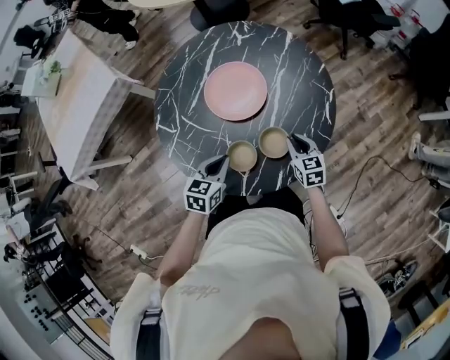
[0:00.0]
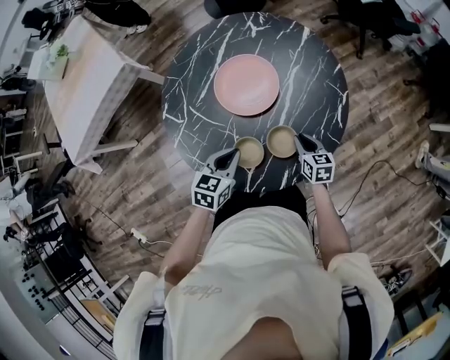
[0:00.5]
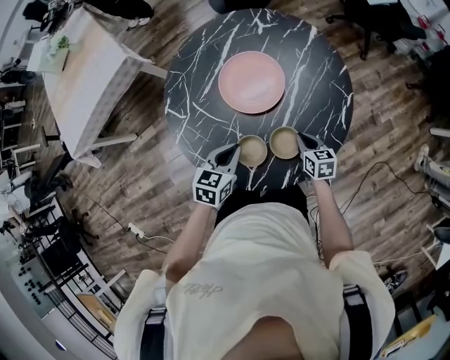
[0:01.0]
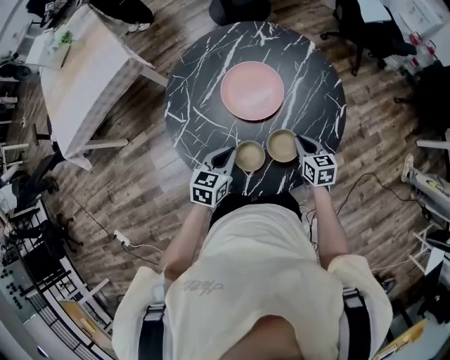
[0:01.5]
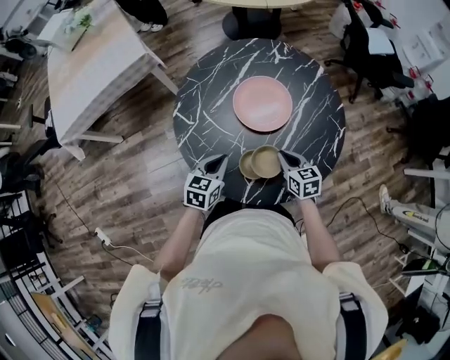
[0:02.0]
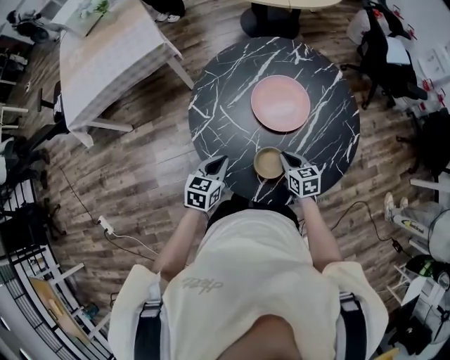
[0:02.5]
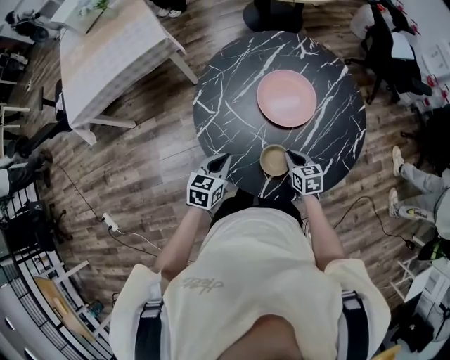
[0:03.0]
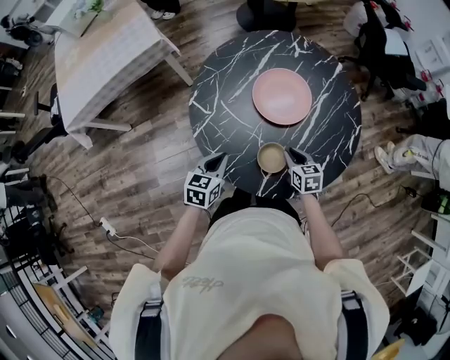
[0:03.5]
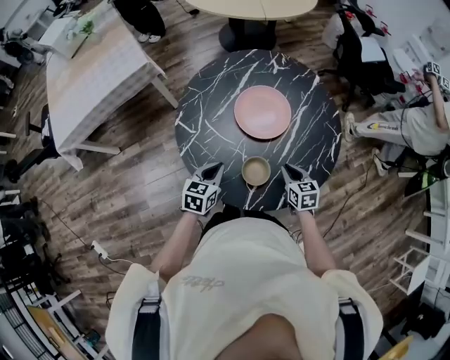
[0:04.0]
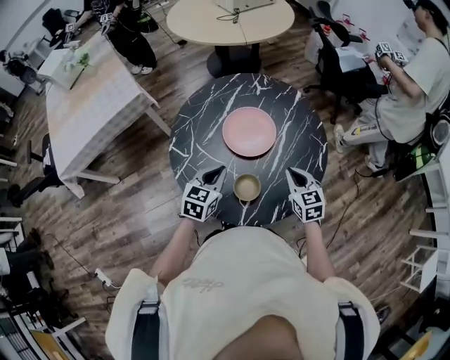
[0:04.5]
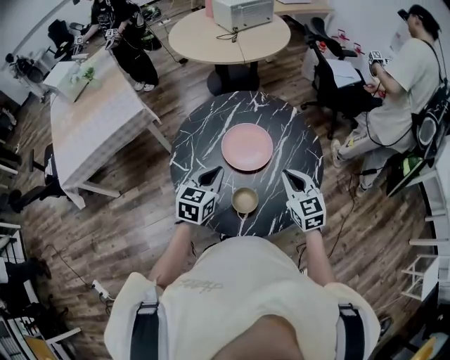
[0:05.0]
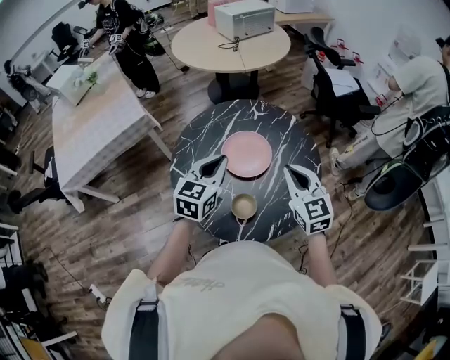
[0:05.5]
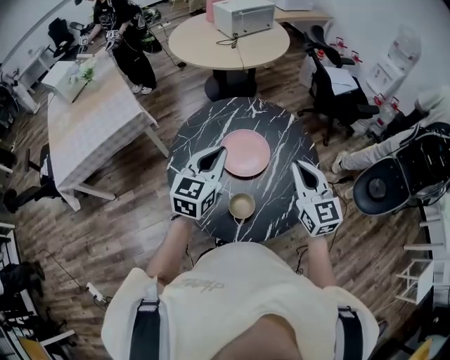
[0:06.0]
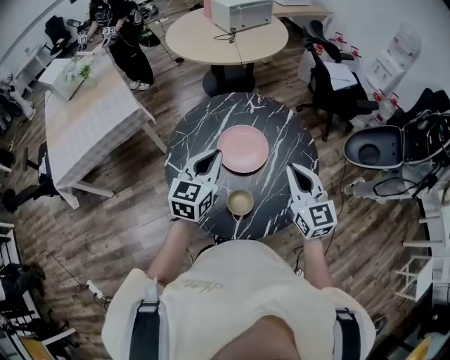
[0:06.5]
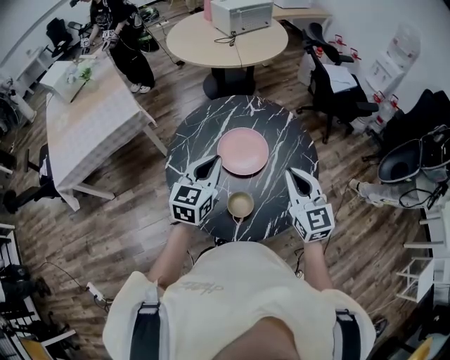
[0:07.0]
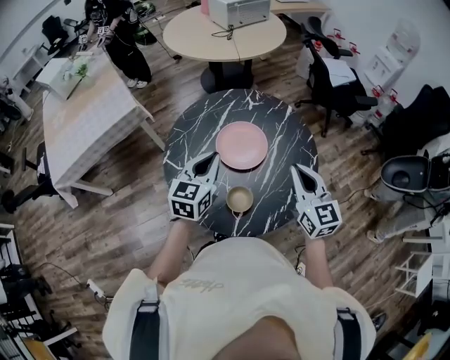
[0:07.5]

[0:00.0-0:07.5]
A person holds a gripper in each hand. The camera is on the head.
0:00.0 to 0:02.0: The two grippers go about 10 cm to the left.
0:04.0 to 0:05.5: Both grippers move upward, roughly 25 cm. The right gripper changes its angle by some 30 degrees. Meanwhile the left gripper swivels some 20 degrees.
0:05.5 to 0:07.5: The grippers move only a little.

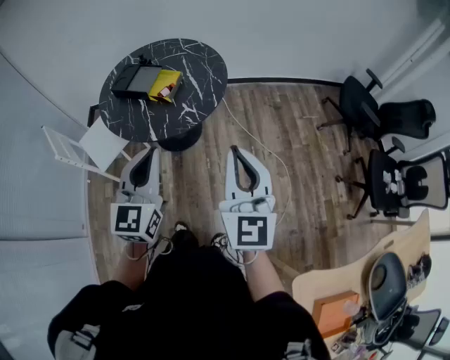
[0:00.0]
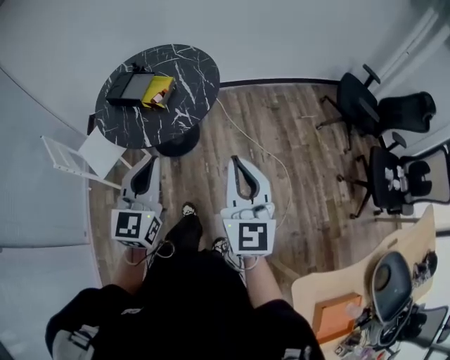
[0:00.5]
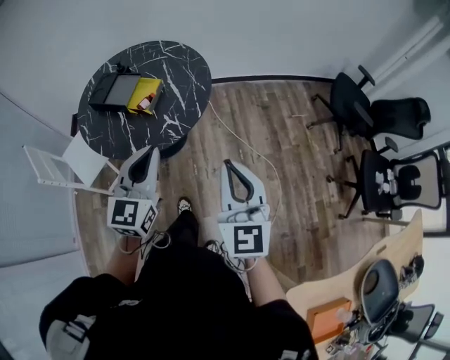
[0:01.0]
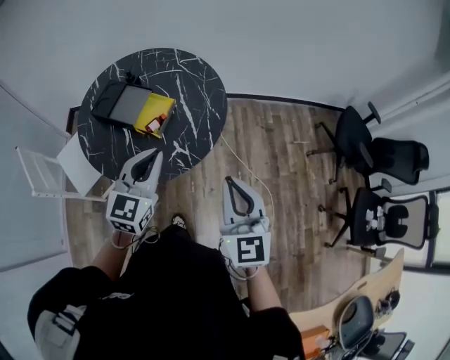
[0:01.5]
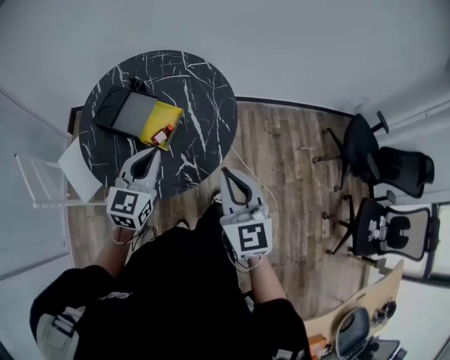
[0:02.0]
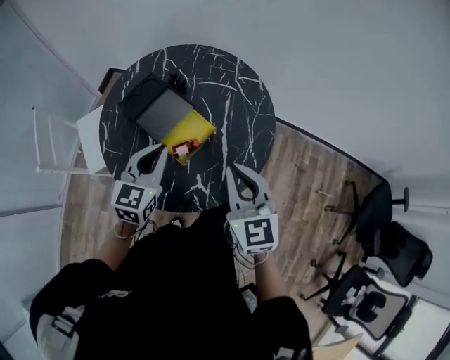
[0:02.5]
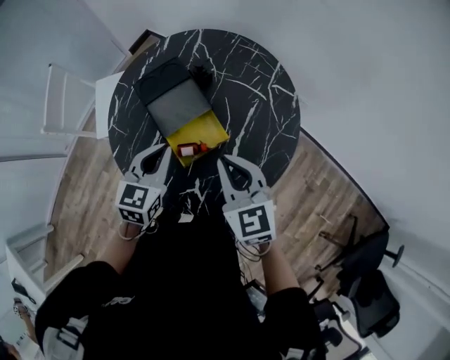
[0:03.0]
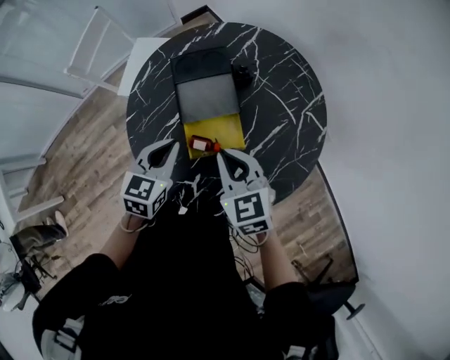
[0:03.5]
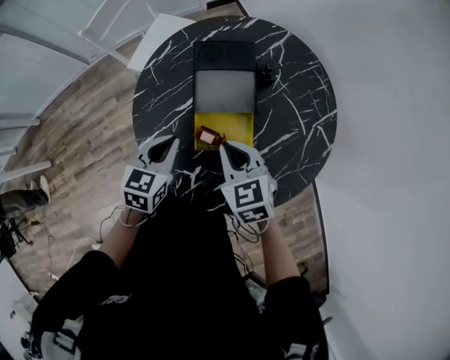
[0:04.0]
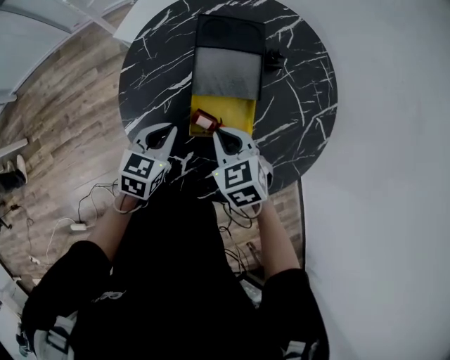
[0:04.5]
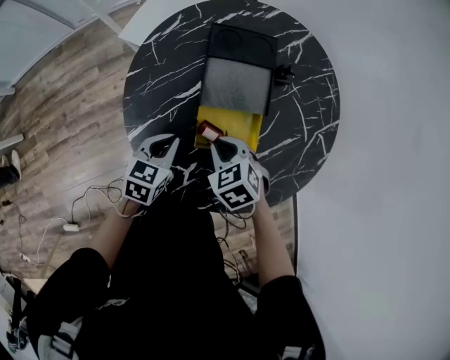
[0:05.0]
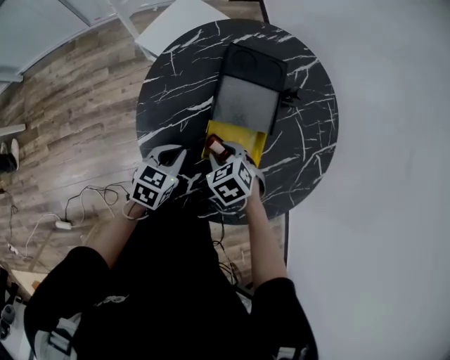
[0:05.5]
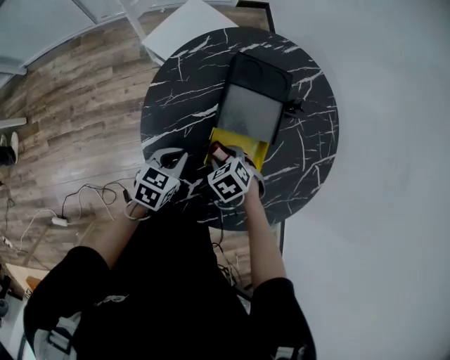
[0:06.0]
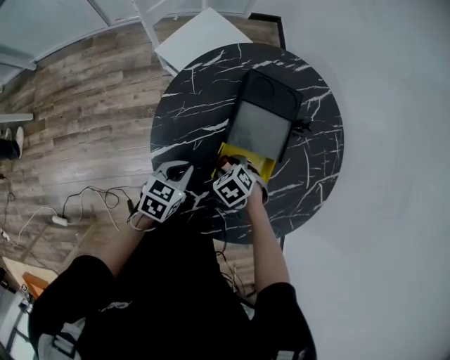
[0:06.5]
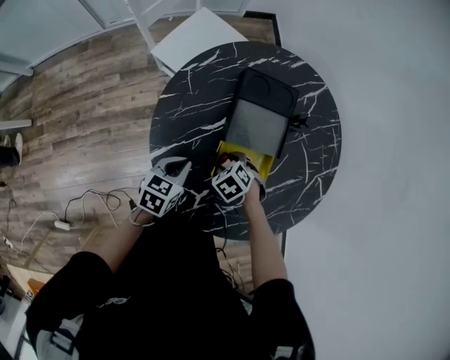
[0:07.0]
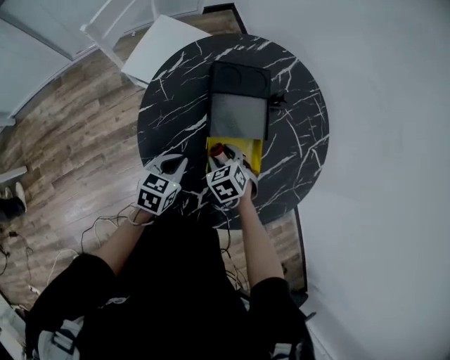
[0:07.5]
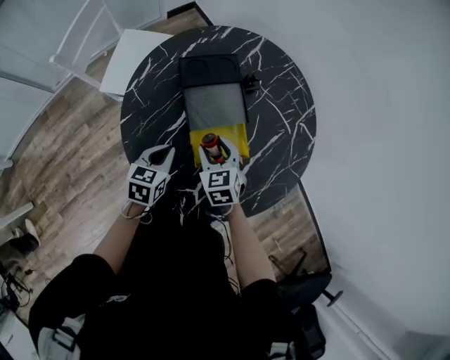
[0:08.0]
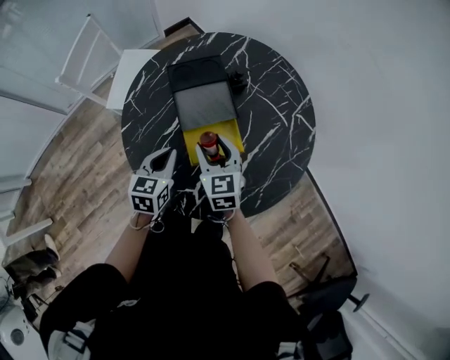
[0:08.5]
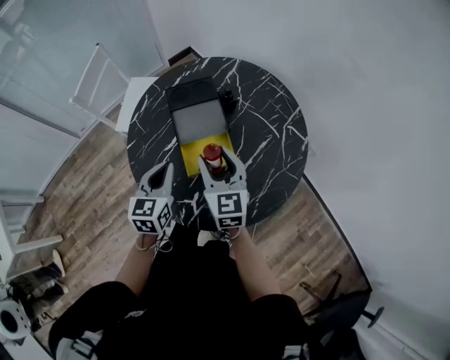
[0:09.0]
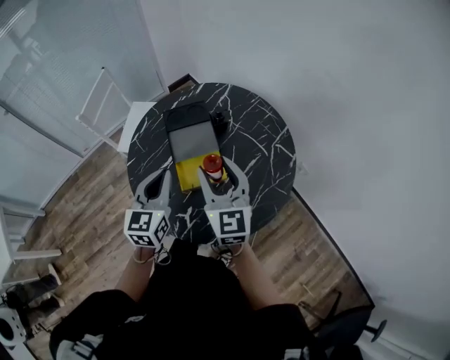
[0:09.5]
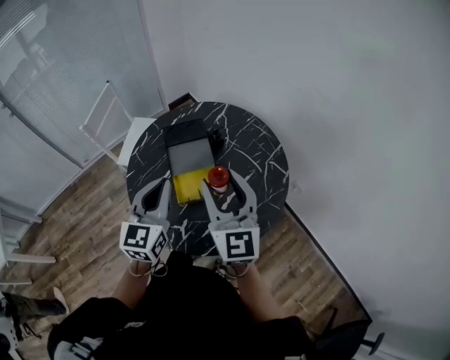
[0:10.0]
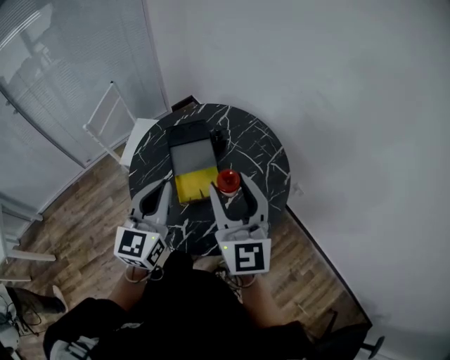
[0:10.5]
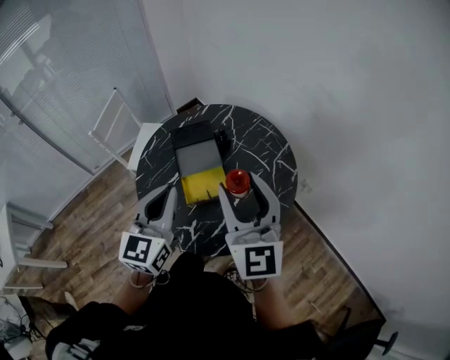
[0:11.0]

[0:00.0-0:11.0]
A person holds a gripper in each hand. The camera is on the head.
0:00.0 to 0:02.0: Both grippers travel together forward, some 35 cm. The right gripper rotates some 20 degrees.
0:02.0 to 0:03.5: The left gripper changes place by some 20 cm, and swivels some 60 degrees, while the right gripper shifts by roughly 35 cm, and swivels about 70 degrees.
0:03.5 to 0:05.5: Both grippers move downward and to the left, roughly 20 cm. The right gripper tips its fingers downward by about 40 degrees, and opens up; the left gripper swivels roughly 20 degrees.
0:07.5 to 0:09.0: The left gripper is displaced upward and to the right by some 15 cm, and rotates about 30 degrees; the right gripper goes about 20 cm upward, and tips its fingers upward by about 50 degrees.
0:09.0 to 0:11.0: The right gripper moves upward, backward and to the right, some 25 cm, and turns by roughly 30 degrees, while the left gripper shifts some 20 cm upward, and turns by approximately 20 degrees.

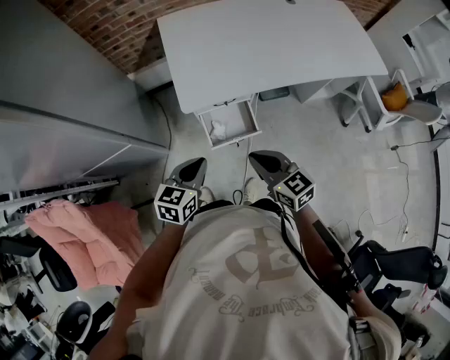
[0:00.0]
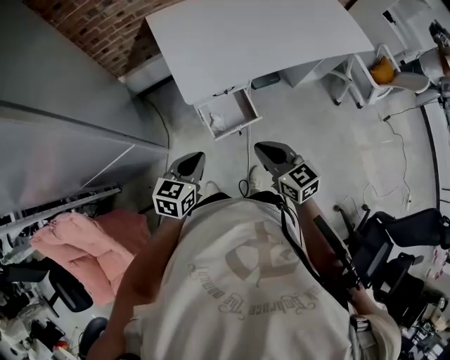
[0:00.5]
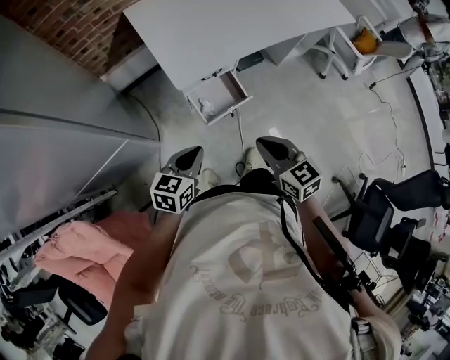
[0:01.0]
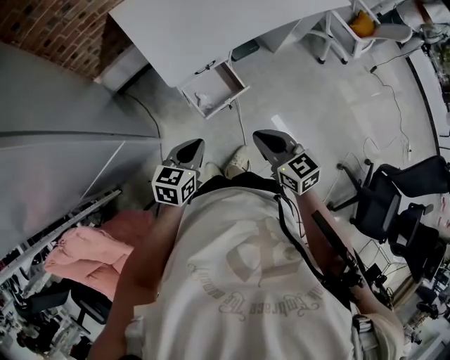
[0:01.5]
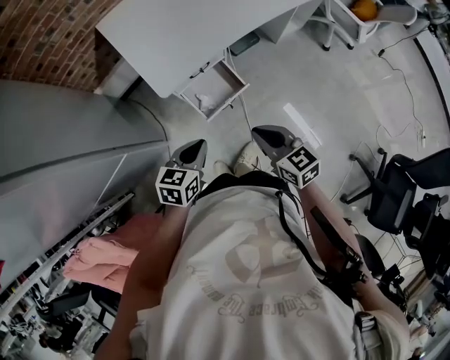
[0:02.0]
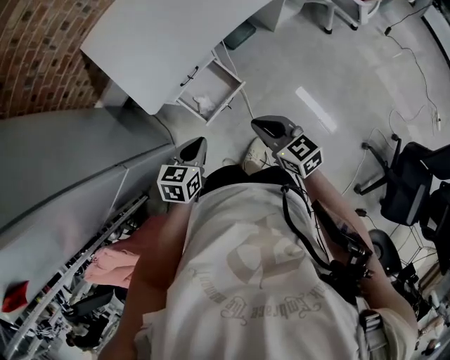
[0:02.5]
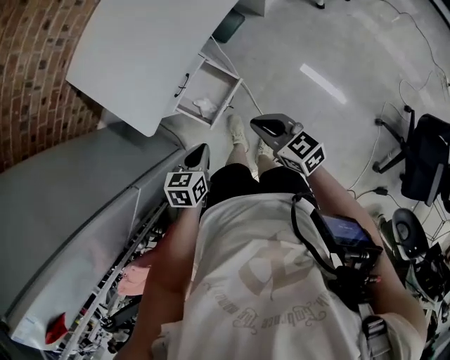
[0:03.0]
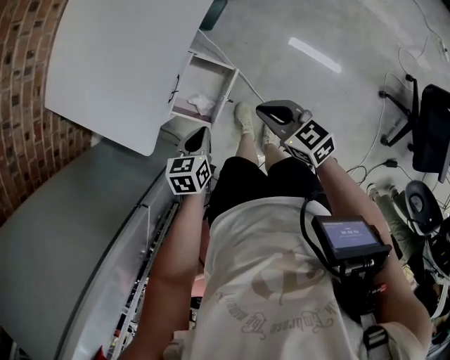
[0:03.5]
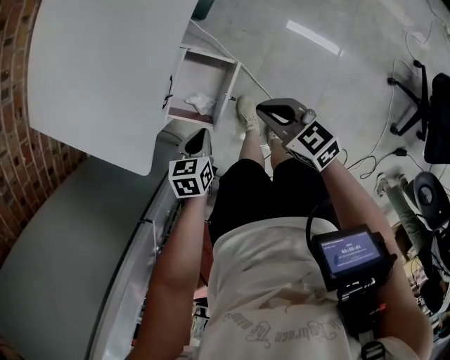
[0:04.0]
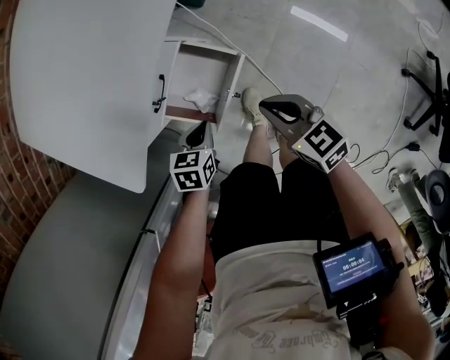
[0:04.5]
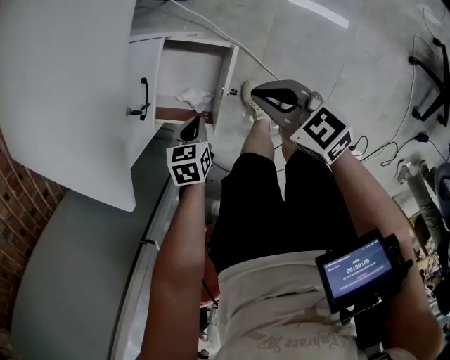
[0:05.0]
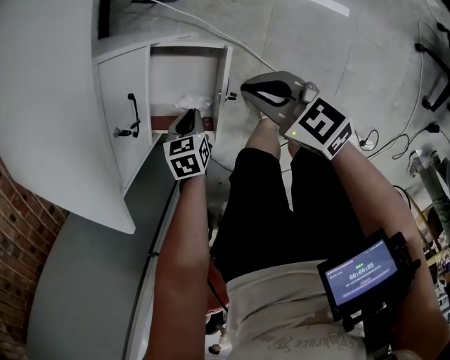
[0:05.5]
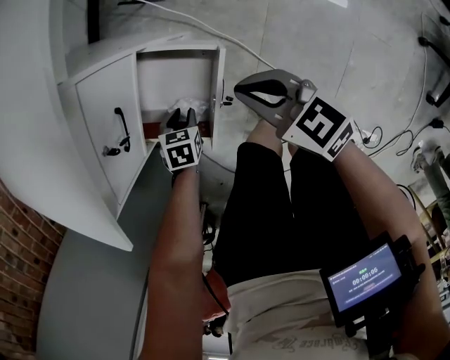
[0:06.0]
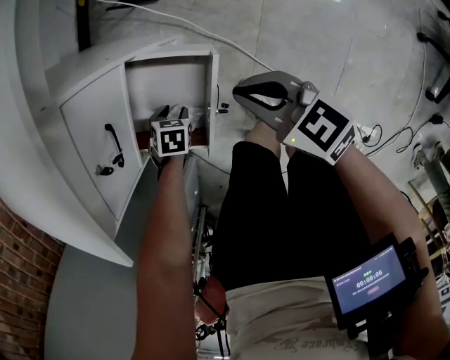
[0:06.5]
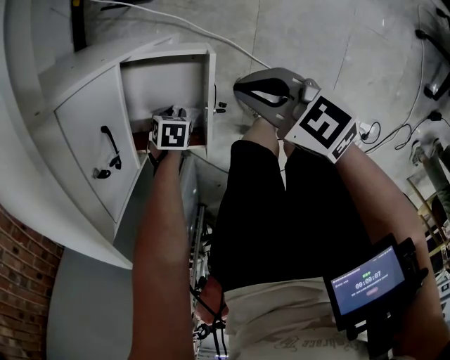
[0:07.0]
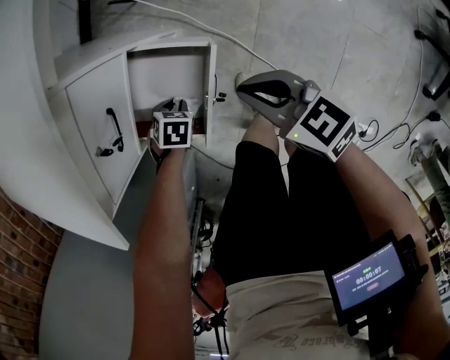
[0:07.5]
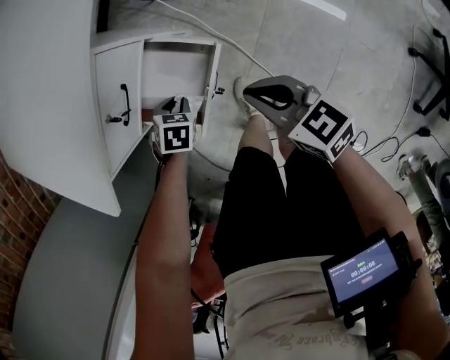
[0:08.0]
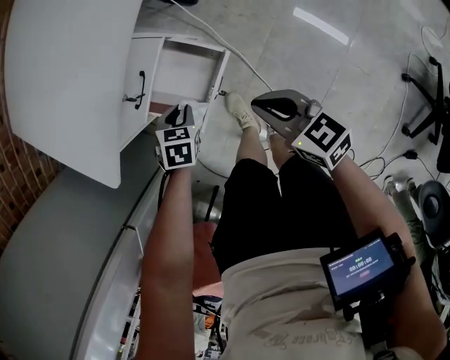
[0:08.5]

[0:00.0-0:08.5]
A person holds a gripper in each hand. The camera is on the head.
0:00.0 to 0:02.0: The right gripper travels backward by approximately 5 cm, and swivels about 20 degrees; the left gripper moves downward, roughly 5 cm, and swivels roughly 20 degrees.
0:02.0 to 0:04.0: Both grippers move downward and forward, roughly 25 cm. The left gripper rotates about 30 degrees.
0:04.0 to 0:06.5: The right gripper goes some 15 cm downward; the left gripper heads downward, covering some 30 cm, points its fingers about 30 degrees further downward, and opens.
0:06.5 to 0:08.5: The right gripper shifts roughly 10 cm upward, while the left gripper heads upward, covering some 20 cm, rotates roughly 20 degrees, and closes up.
